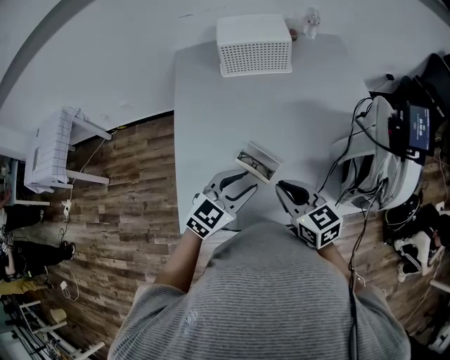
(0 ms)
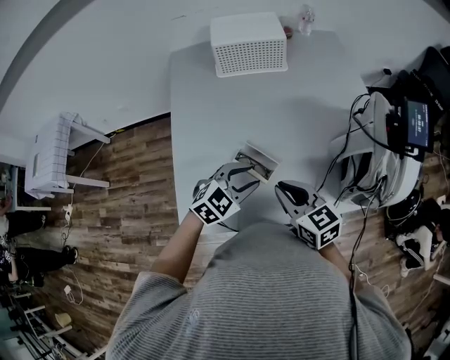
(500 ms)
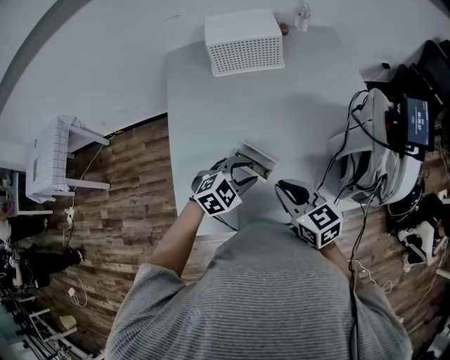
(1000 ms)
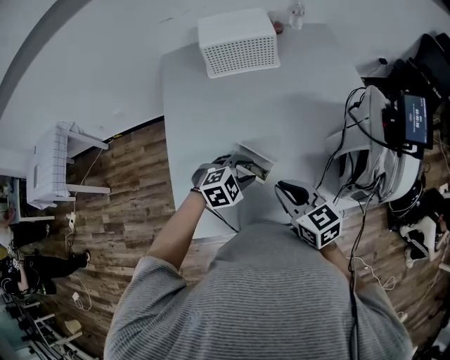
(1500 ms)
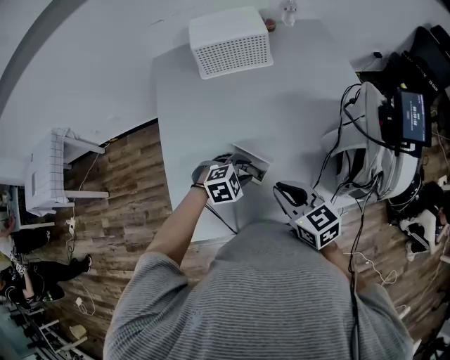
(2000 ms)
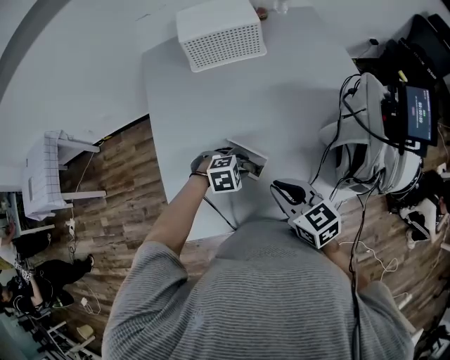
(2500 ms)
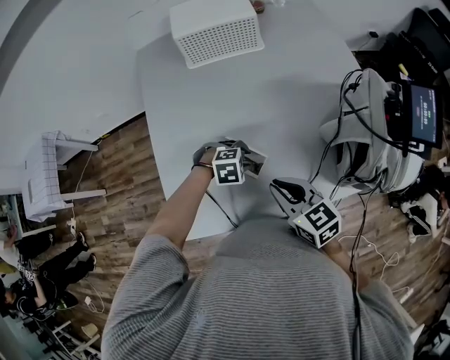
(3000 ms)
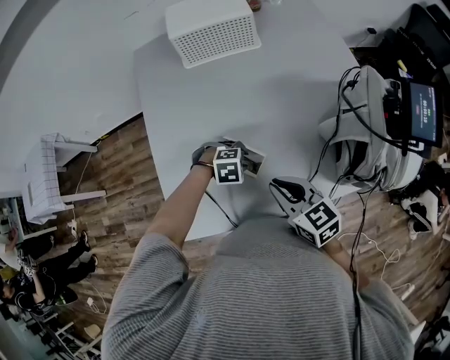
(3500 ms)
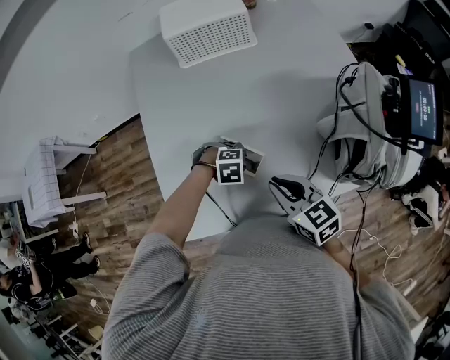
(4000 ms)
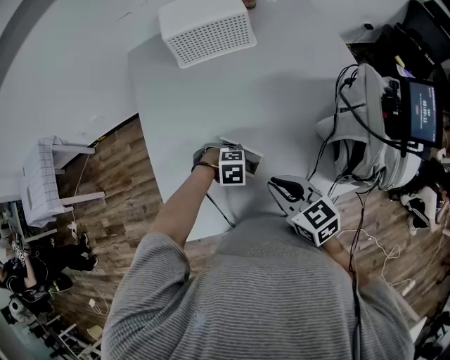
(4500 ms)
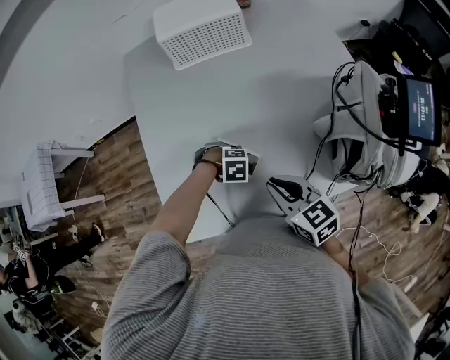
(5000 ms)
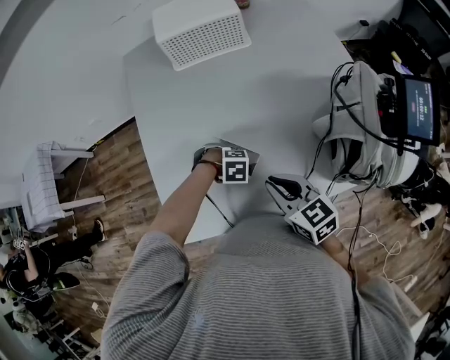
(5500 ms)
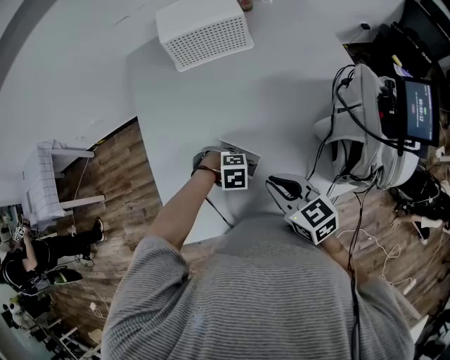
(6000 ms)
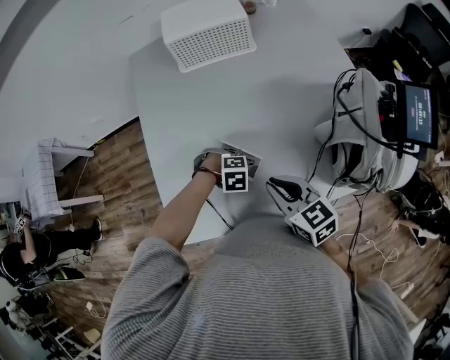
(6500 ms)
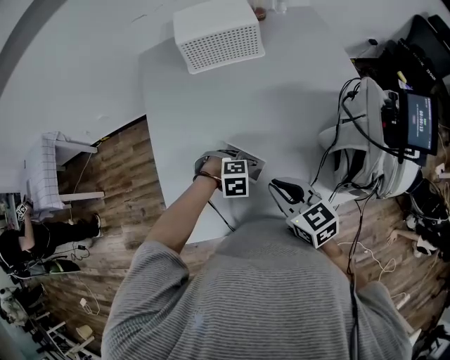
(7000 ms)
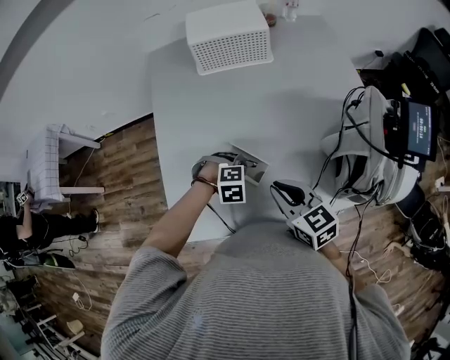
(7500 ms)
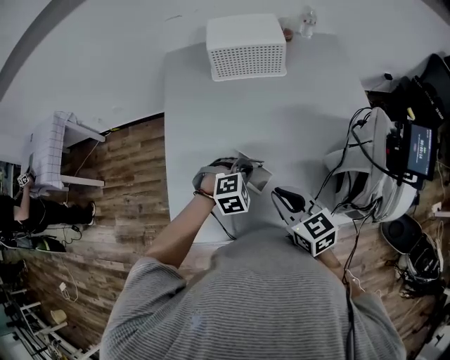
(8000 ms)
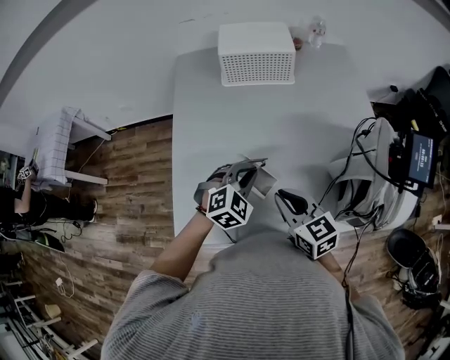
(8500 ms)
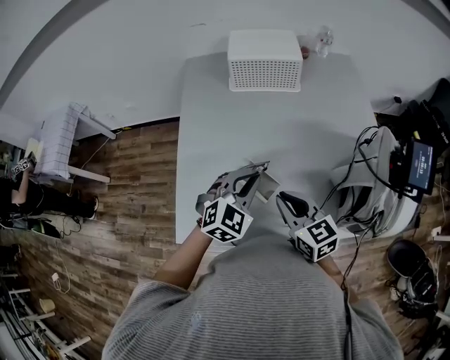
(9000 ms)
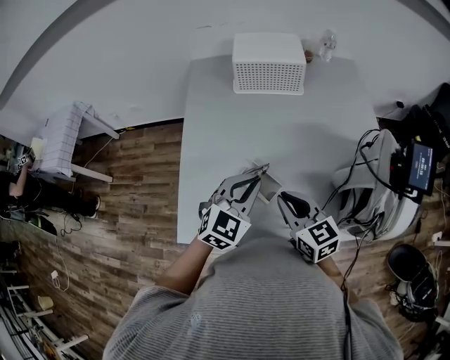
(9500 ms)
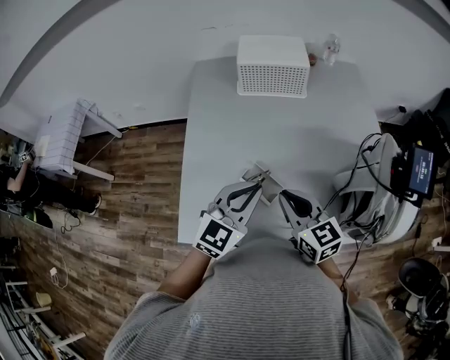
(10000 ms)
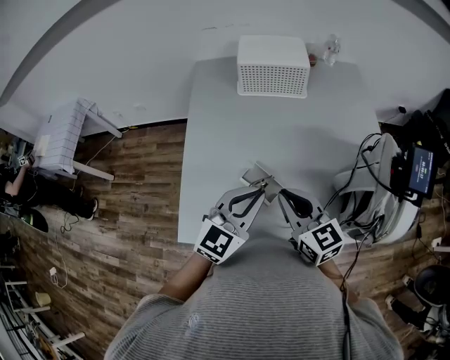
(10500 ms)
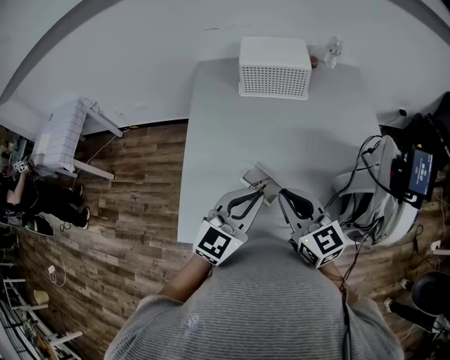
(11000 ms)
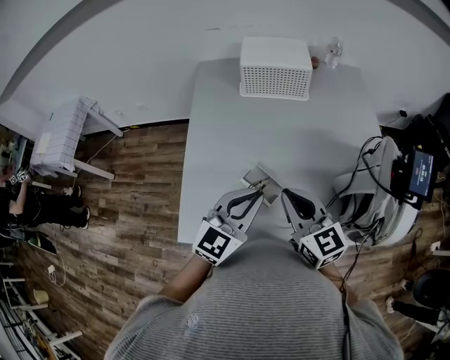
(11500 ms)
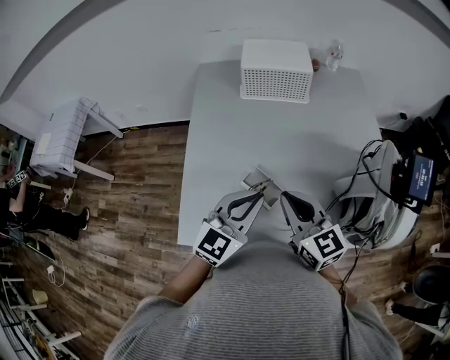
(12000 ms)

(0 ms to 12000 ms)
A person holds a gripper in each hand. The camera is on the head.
0 ms - 2000 ms: The left gripper goes about 15 cm downward and forward, and tilts its fingers roughly 40 degrees downward.
2000 ms - 4000 ms: The left gripper is displaced downward by roughly 10 cm, and swivels approximately 20 degrees.
4000 ms - 6000 ms: The left gripper closes its fingers.
6000 ms - 8000 ms: The left gripper heads upward, covering roughly 10 cm, and turns by some 30 degrees.
8000 ms - 10000 ms: The left gripper shifts roughly 20 cm upward, and tilts its fingers about 40 degrees upward; the right gripper moves upward, some 5 cm.
10000 ms - 12000 ms: The grippers move only a little.

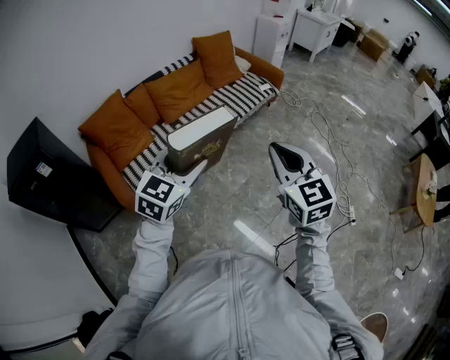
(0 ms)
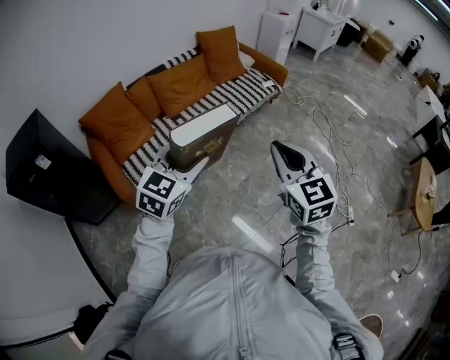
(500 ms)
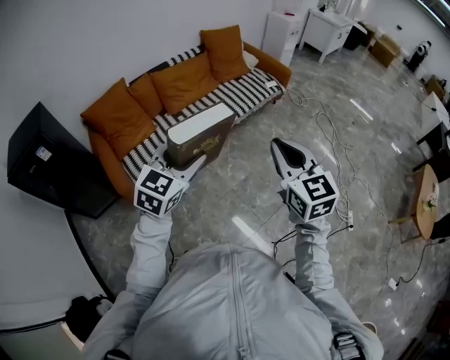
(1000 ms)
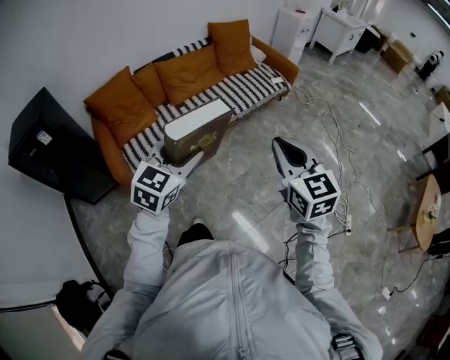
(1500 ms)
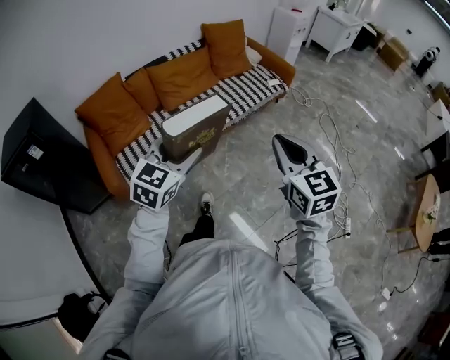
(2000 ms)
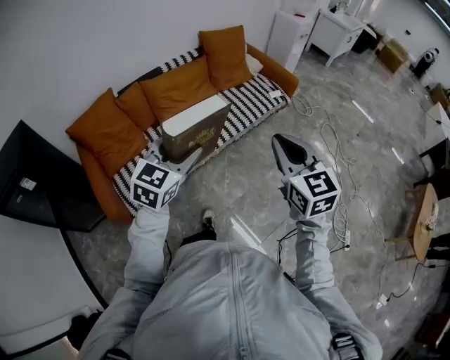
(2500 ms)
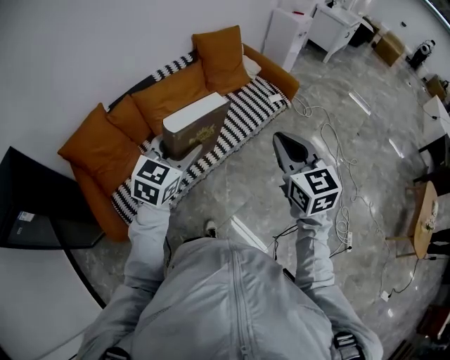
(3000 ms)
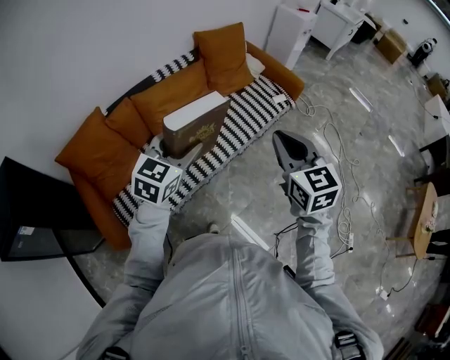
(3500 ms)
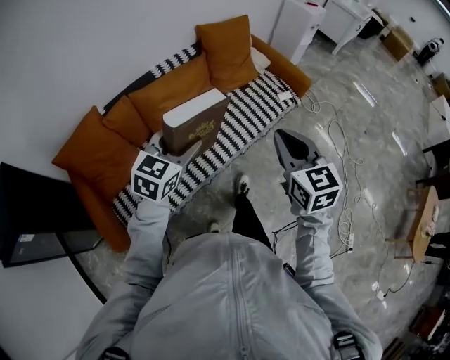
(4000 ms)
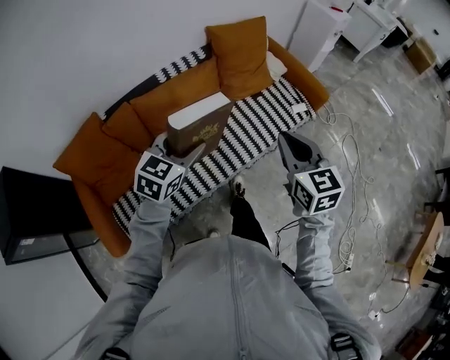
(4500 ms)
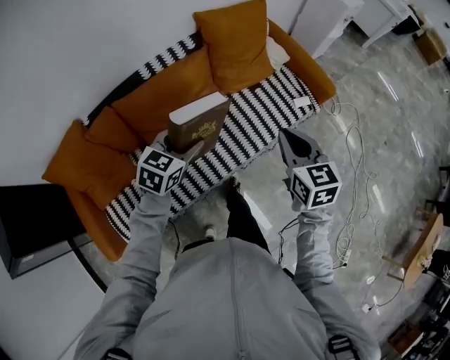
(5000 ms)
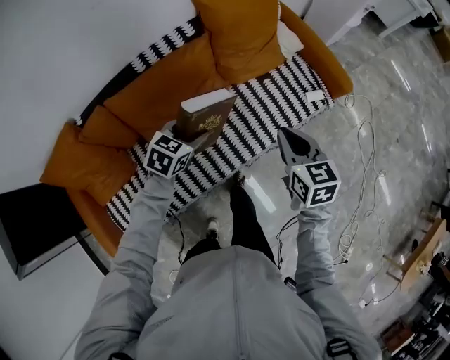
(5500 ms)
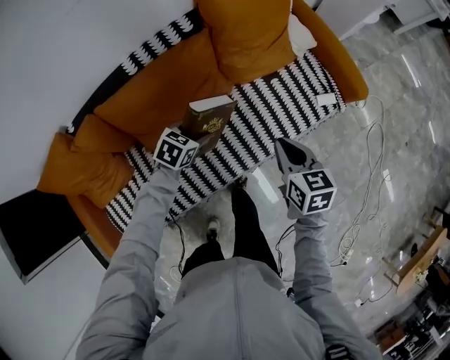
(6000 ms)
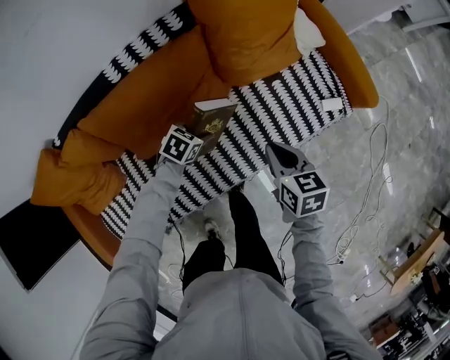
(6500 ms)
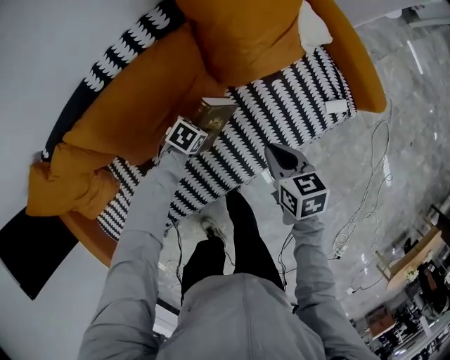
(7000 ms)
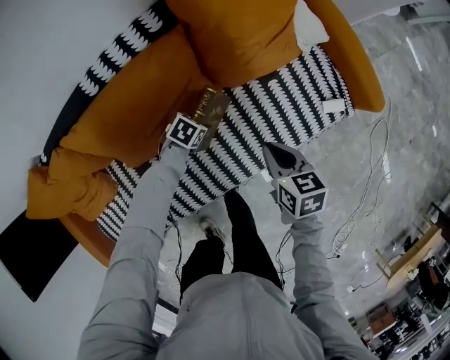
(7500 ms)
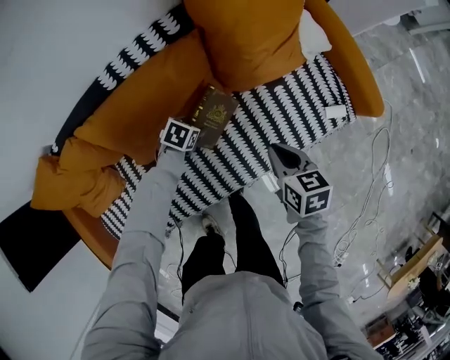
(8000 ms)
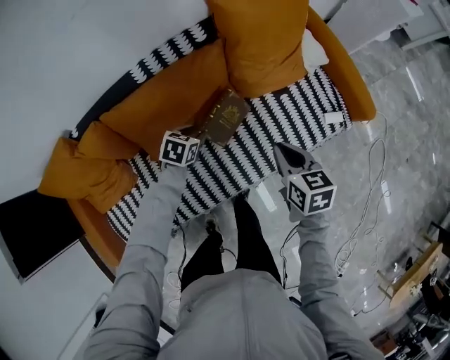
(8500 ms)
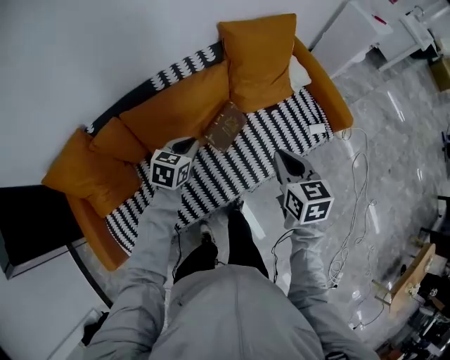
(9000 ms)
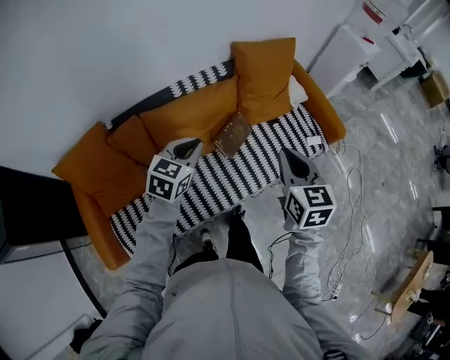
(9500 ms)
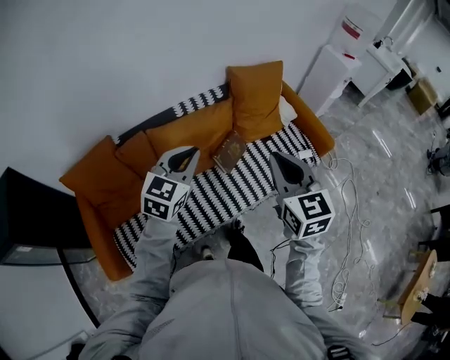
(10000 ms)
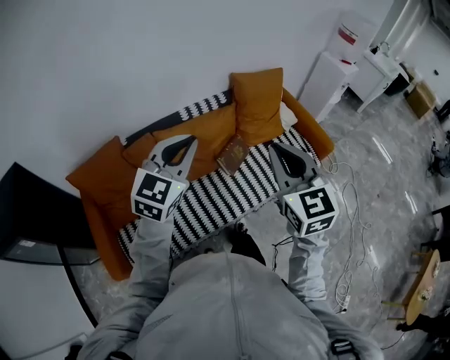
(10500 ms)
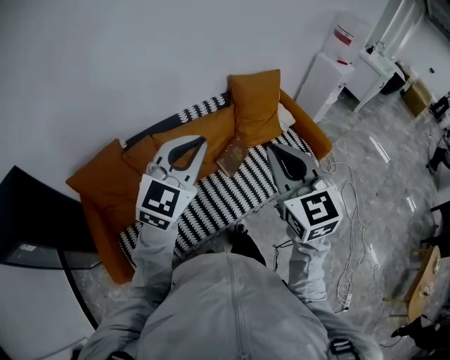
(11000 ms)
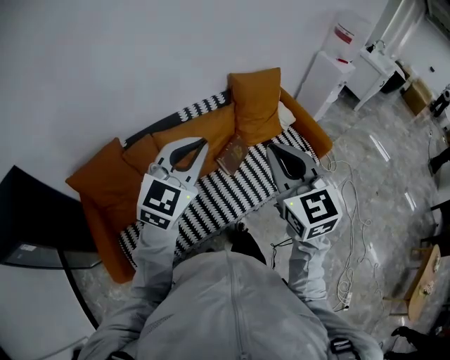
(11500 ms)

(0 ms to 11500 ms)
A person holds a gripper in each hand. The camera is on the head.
0 ms - 2000 ms: The right gripper is displaced forward and to the right by some 10 cm. The left gripper is displaced forward by some 5 cm.
2000 ms - 4000 ms: Both grippers travel together forward, roughly 40 cm.
4000 ms - 6000 ms: The left gripper travels downward and forward by about 50 cm, and points its fingers some 30 degrees further downward. The right gripper travels forward and downward by approximately 50 cm, and turns by about 30 degrees.
6000 ms - 7500 ms: The left gripper moves downward, roughly 20 cm. Meanwhile the right gripper shifts about 15 cm downward.
7500 ms - 9500 ms: The two grippers go approximately 50 cm upward and backward. The right gripper swivels roughly 30 degrees; the left gripper points its fingers about 40 degrees further upward, and closes its fingers.
9500 ms - 11500 ms: The left gripper is displaced upward and backward by roughly 25 cm, and rotates some 30 degrees. The right gripper is displaced upward, backward and to the left by roughly 25 cm, and swivels about 20 degrees.

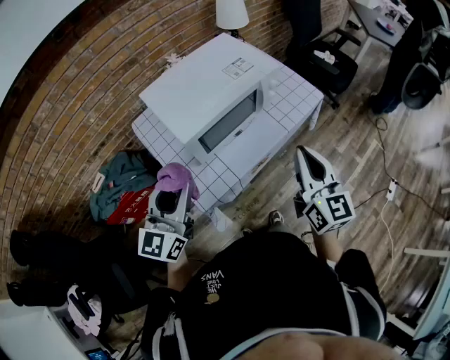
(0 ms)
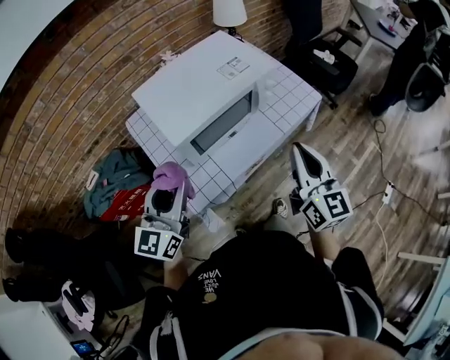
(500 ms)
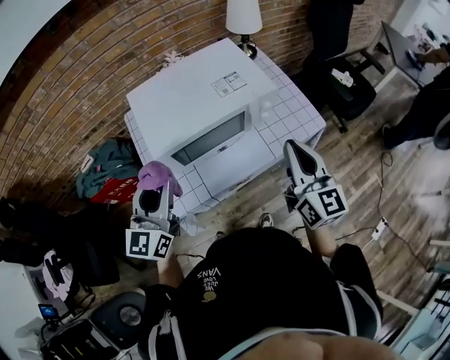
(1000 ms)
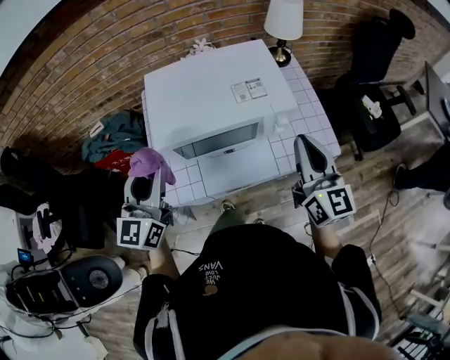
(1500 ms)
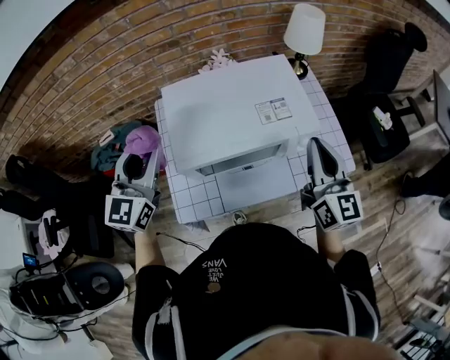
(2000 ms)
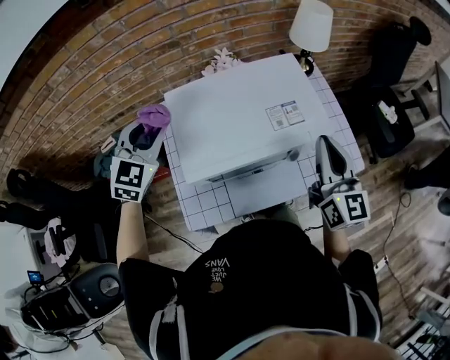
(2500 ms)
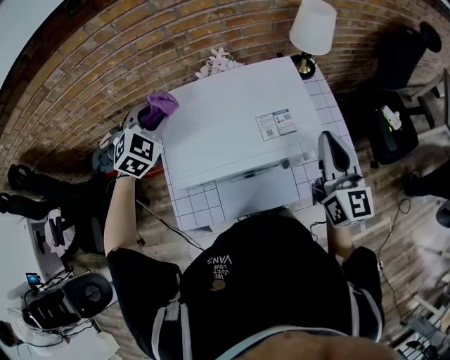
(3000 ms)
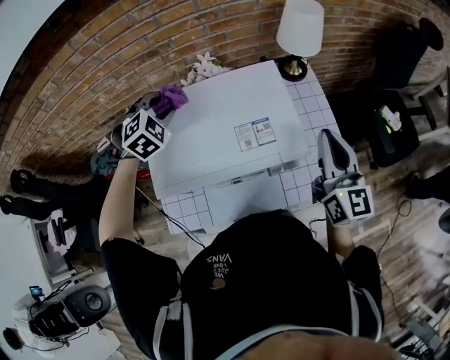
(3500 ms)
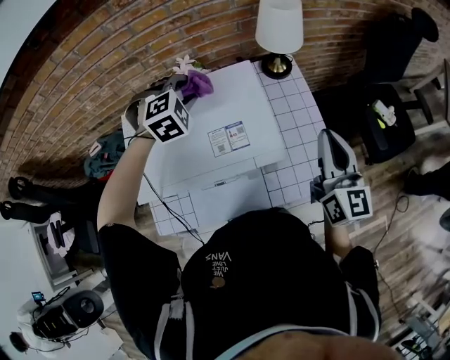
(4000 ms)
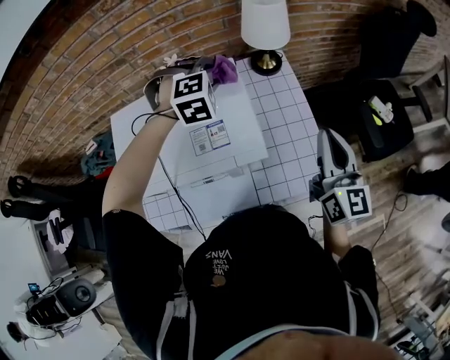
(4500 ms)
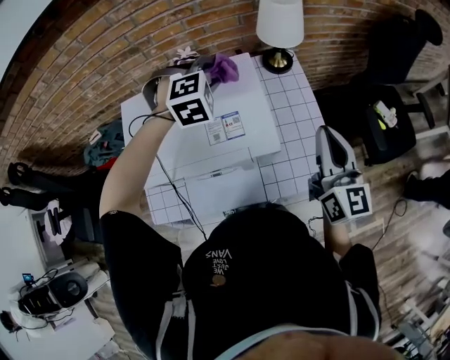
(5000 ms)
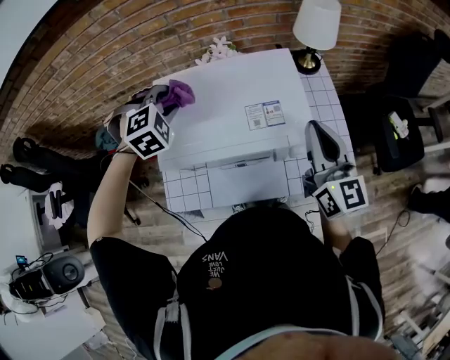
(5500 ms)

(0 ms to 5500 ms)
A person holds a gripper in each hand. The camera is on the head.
0 ms - 2000 ms: The right gripper shifts by some 25 cm, and changes its angle by approximately 20 degrees, while the left gripper shifts by roughly 15 cm, and turns by roughly 30 degrees.
2000 ms - 3500 ms: The right gripper travels forward and to the right by about 15 cm; the left gripper shifts roughly 25 cm forward and downward, and points its fingers approximately 50 degrees further downward.
3500 ms - 5500 ms: The right gripper reaches some 10 cm to the right, then returns, while the left gripper is displaced backward by about 5 cm, and moves roughly 25 cm to the right and comes back.
